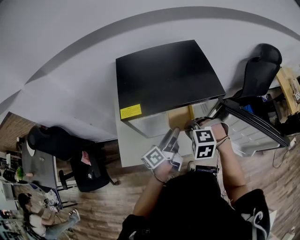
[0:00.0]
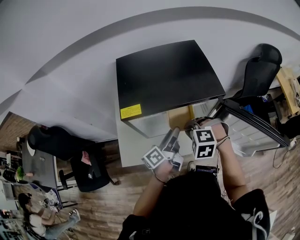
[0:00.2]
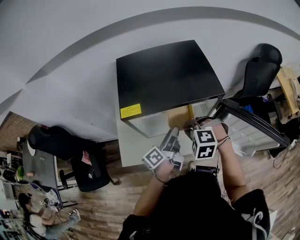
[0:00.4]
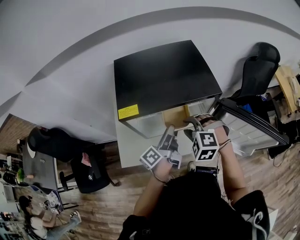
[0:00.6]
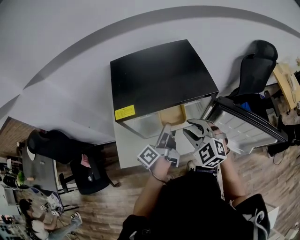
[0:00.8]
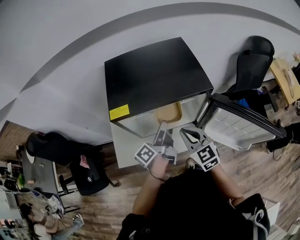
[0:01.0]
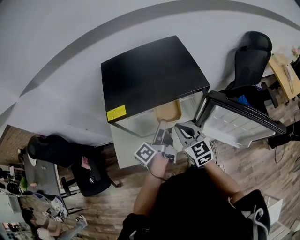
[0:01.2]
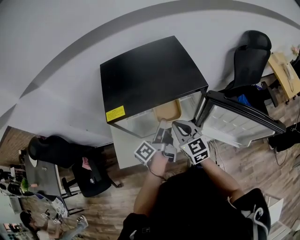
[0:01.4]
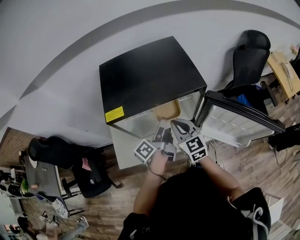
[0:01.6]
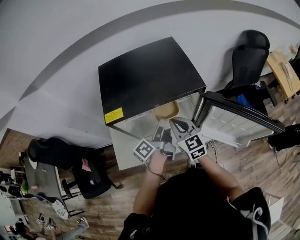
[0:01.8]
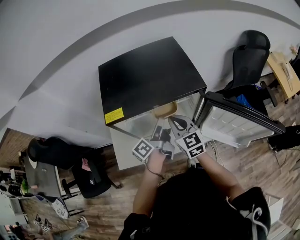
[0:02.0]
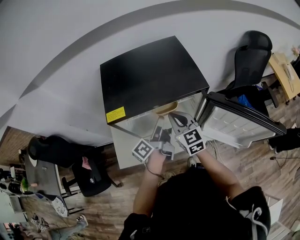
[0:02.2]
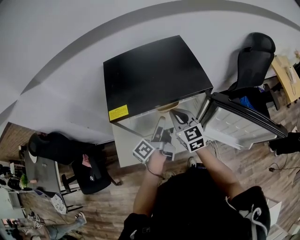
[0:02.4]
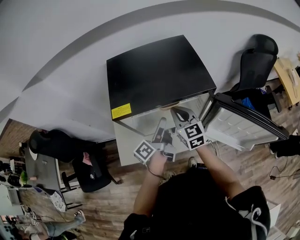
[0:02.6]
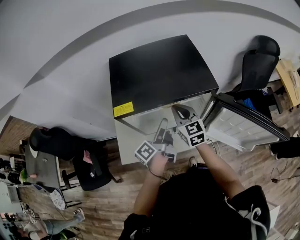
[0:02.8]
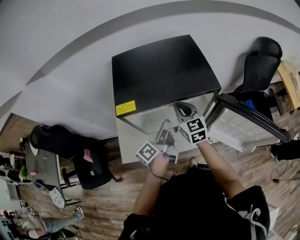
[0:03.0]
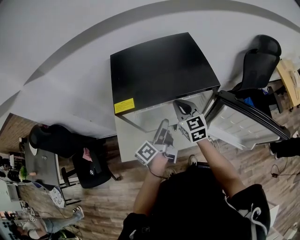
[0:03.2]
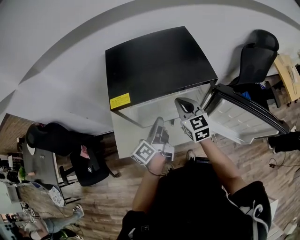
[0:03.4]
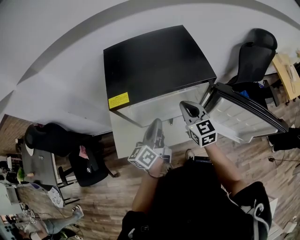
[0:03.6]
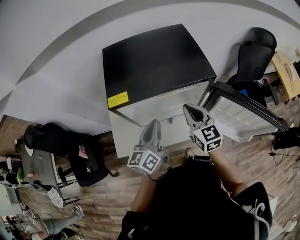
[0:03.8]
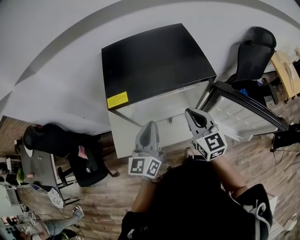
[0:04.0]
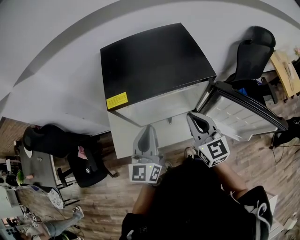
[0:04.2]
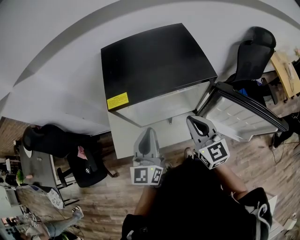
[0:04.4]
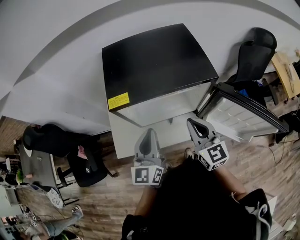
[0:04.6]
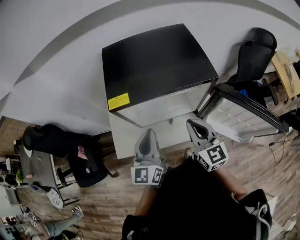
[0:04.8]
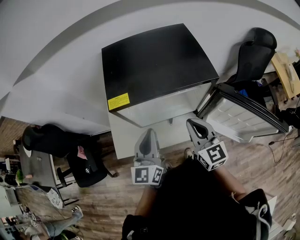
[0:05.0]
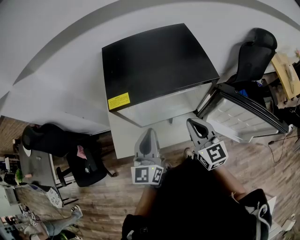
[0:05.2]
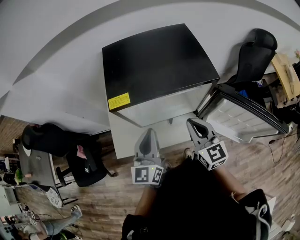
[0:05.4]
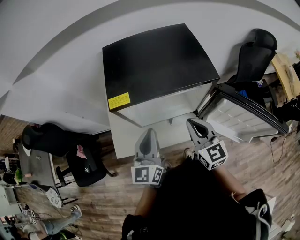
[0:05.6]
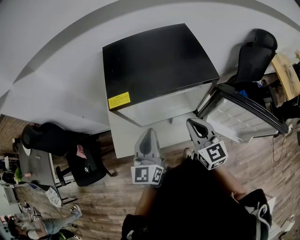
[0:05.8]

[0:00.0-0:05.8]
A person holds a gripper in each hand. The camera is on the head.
0:00.0 to 0:01.4: The right gripper tips its fingers upward by roughly 50 degrees, and opens, then closes again.
0:01.4 to 0:02.8: The right gripper travels forward by some 10 cm.
0:02.8 to 0:04.4: The left gripper heads backward and upward, covering some 10 cm, rolls clockwise, seen from behind, by about 70 degrees, and closes. The right gripper shifts about 10 cm backward.
0:04.4 to 0:05.8: The grippers make only small movements.

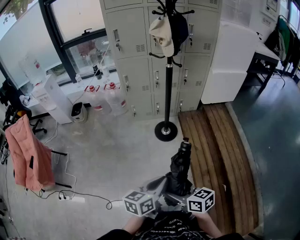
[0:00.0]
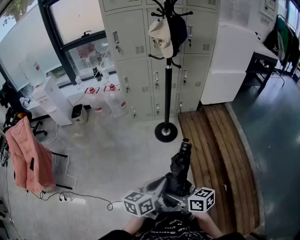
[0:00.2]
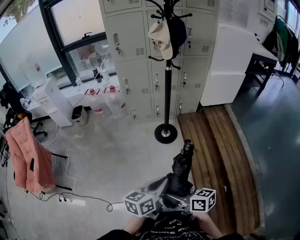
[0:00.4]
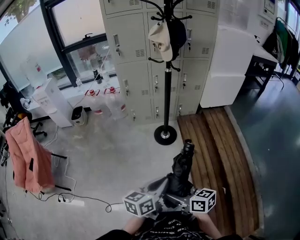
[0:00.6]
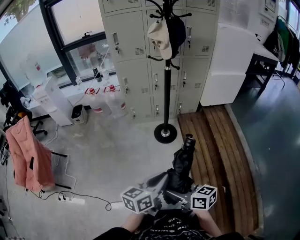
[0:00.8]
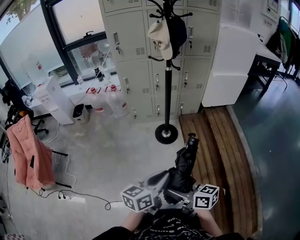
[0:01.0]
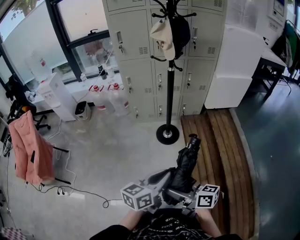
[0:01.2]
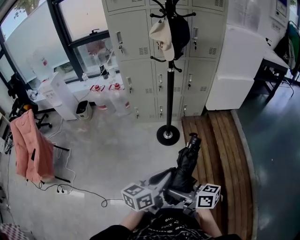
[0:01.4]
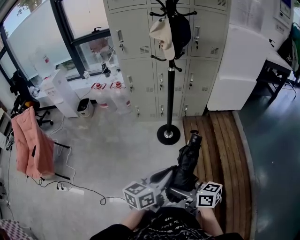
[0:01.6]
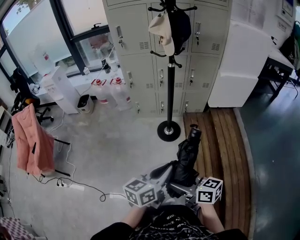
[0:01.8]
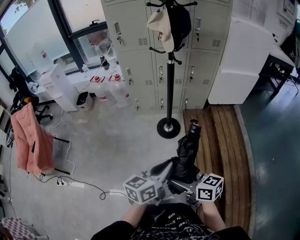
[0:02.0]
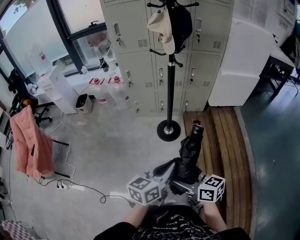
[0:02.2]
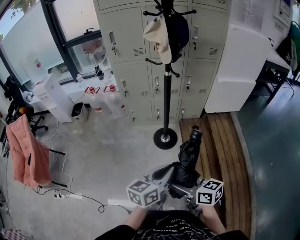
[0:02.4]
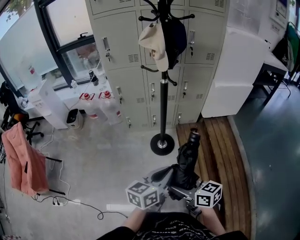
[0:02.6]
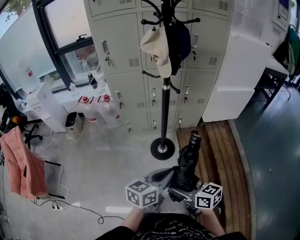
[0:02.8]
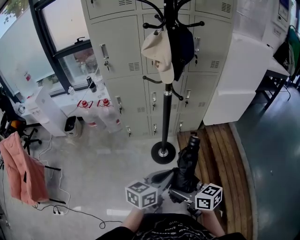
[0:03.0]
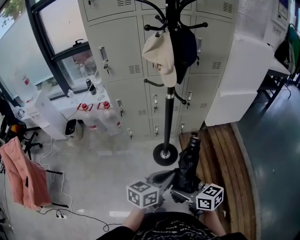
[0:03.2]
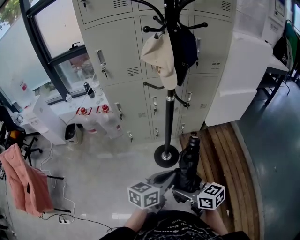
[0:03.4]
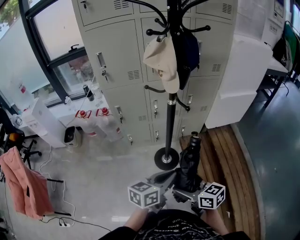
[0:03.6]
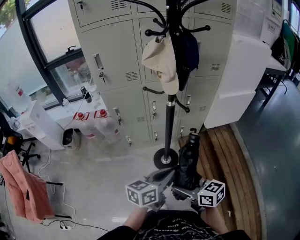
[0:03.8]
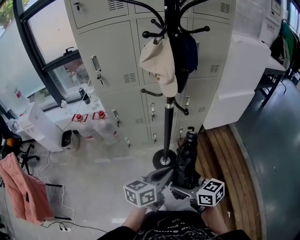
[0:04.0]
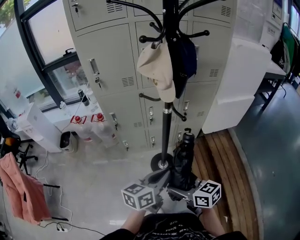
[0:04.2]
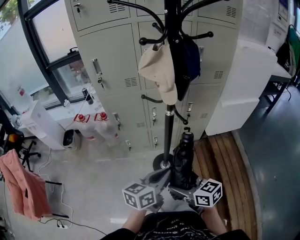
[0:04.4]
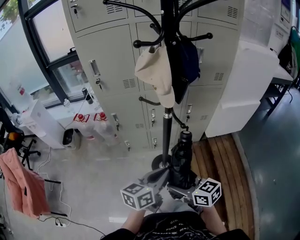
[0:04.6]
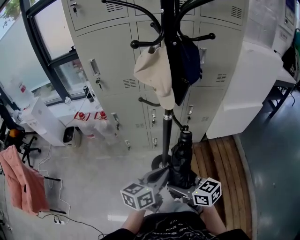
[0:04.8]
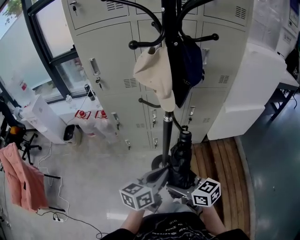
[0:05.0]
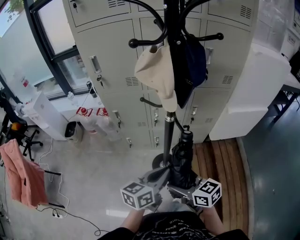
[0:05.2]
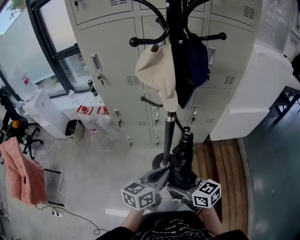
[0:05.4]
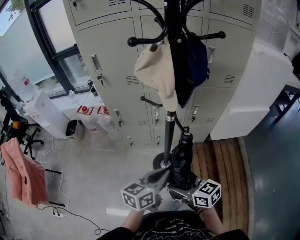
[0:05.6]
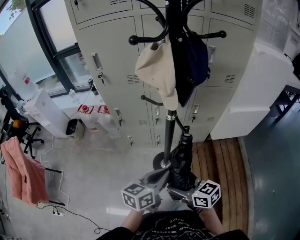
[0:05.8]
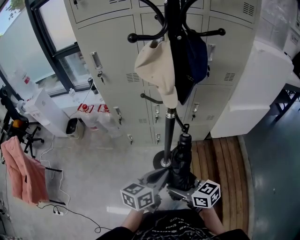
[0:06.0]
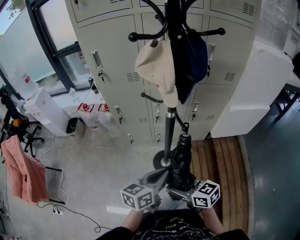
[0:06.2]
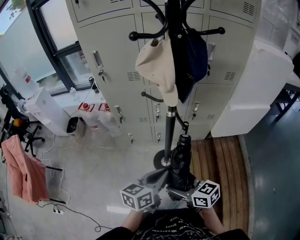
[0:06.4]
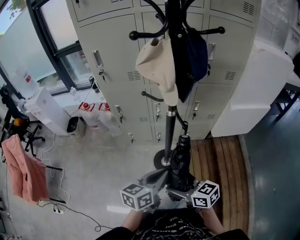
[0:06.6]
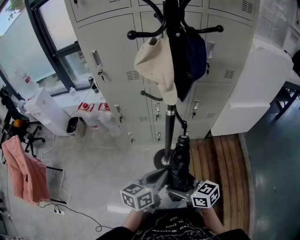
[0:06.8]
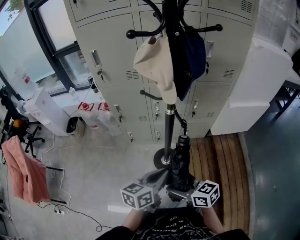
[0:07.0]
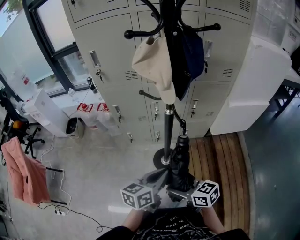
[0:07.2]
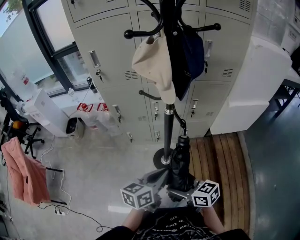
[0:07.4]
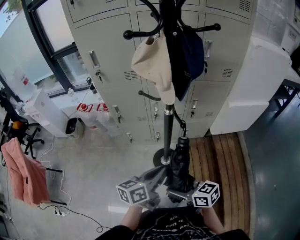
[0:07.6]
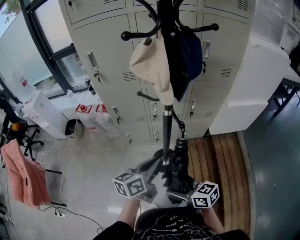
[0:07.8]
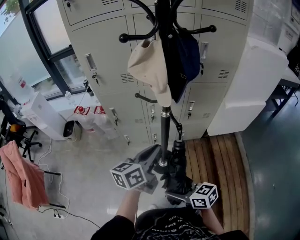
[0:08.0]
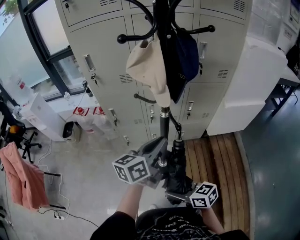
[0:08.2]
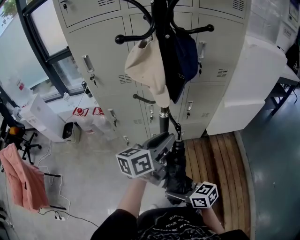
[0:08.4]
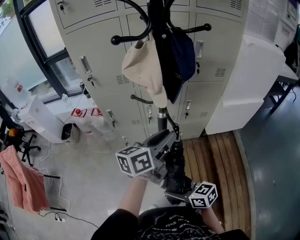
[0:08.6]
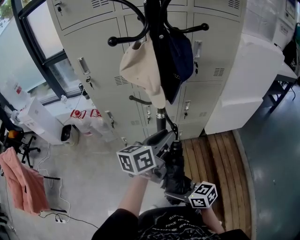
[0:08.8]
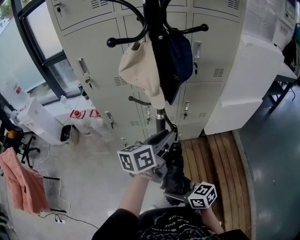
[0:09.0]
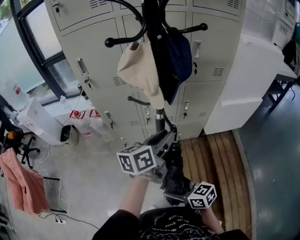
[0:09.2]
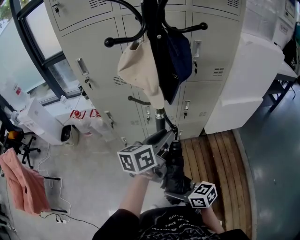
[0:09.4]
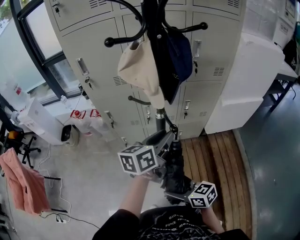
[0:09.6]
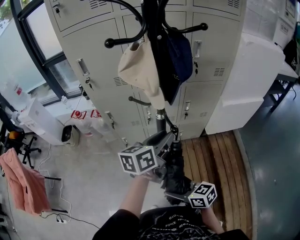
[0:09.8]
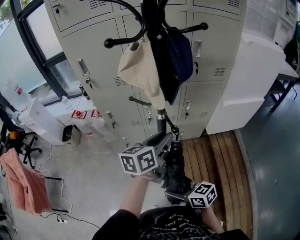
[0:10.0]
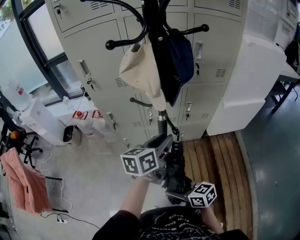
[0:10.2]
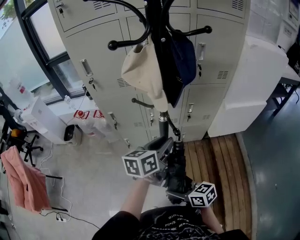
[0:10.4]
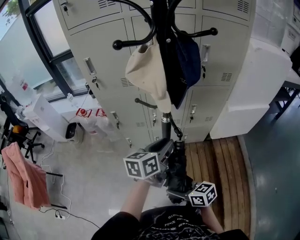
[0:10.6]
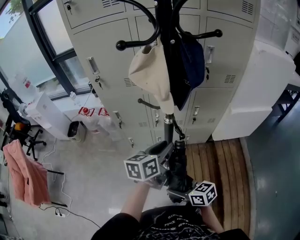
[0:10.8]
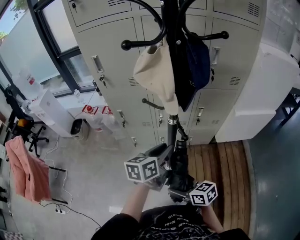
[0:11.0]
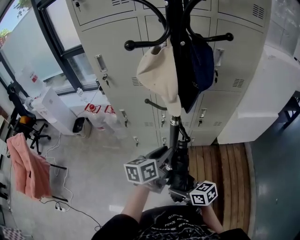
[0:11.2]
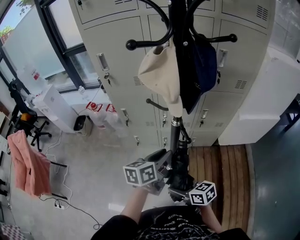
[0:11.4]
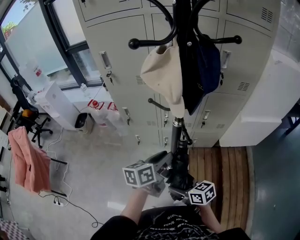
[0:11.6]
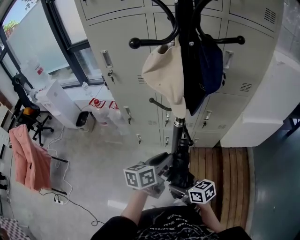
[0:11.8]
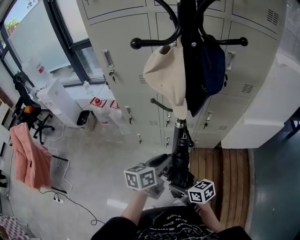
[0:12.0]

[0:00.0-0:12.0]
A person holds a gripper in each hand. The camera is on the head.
0:00.0 to 0:01.6: The two grippers go about 10 cm to the right.
0:01.6 to 0:03.0: Both grippers travel together forward, about 20 cm.
0:03.0 to 0:04.4: The grippers both shift forward by some 15 cm.
0:04.4 to 0:06.0: The right gripper changes place by some 5 cm.
0:06.0 to 0:07.6: The grippers stay close to where they were, moving slightly.
0:07.6 to 0:09.0: The left gripper goes about 15 cm forward, upward and to the right, and opens.
0:09.0 to 0:10.4: The grippers make only small movements.
0:10.4 to 0:12.0: The right gripper goes approximately 5 cm forward; the left gripper moves downward, approximately 5 cm.

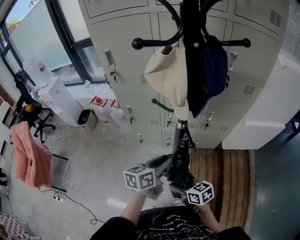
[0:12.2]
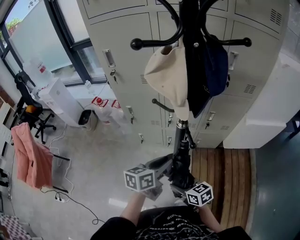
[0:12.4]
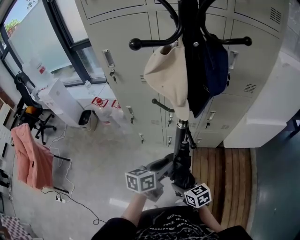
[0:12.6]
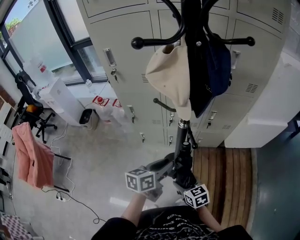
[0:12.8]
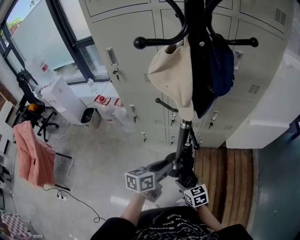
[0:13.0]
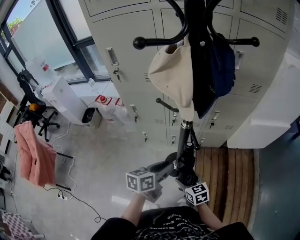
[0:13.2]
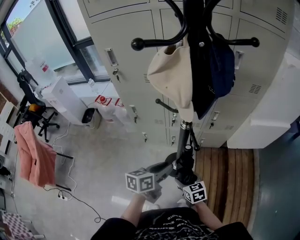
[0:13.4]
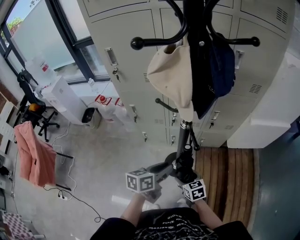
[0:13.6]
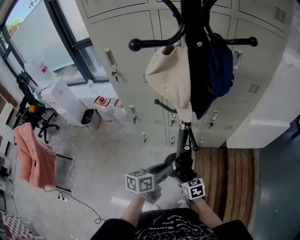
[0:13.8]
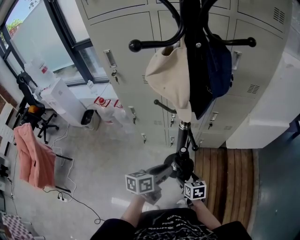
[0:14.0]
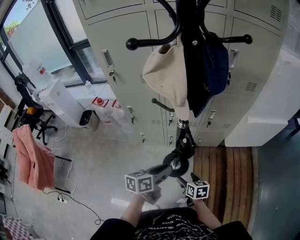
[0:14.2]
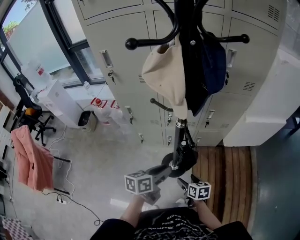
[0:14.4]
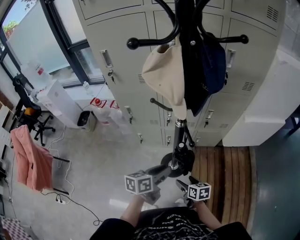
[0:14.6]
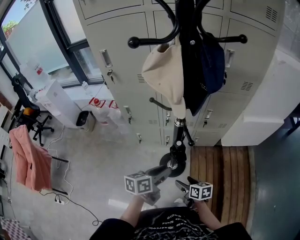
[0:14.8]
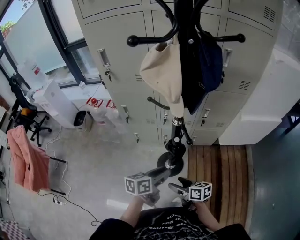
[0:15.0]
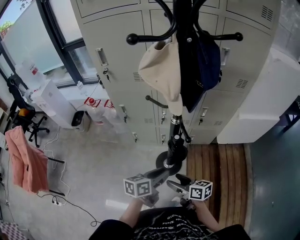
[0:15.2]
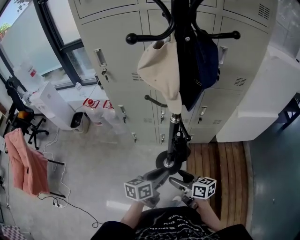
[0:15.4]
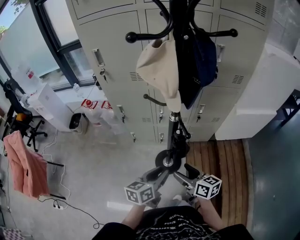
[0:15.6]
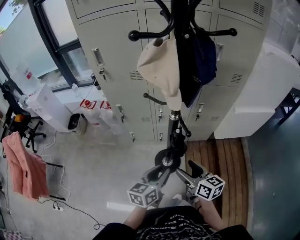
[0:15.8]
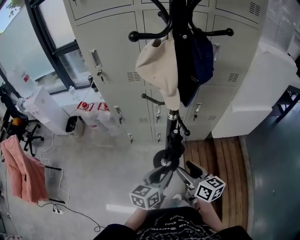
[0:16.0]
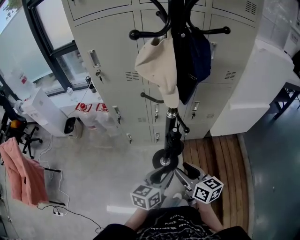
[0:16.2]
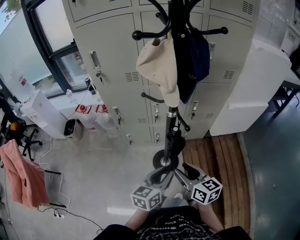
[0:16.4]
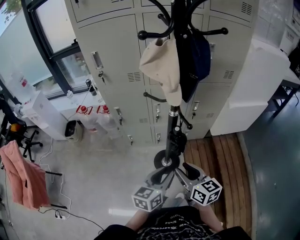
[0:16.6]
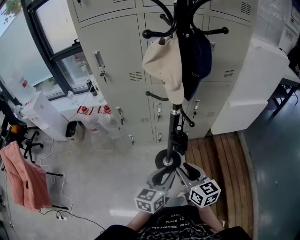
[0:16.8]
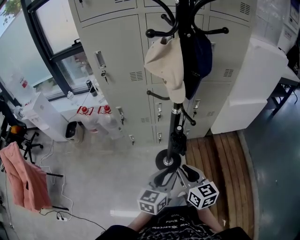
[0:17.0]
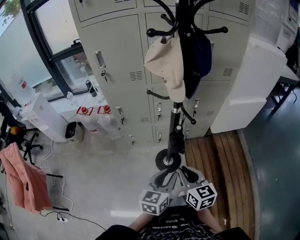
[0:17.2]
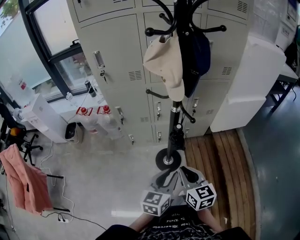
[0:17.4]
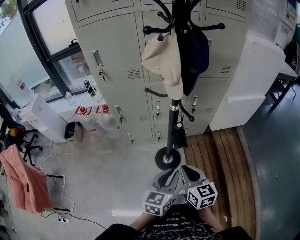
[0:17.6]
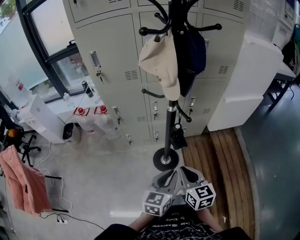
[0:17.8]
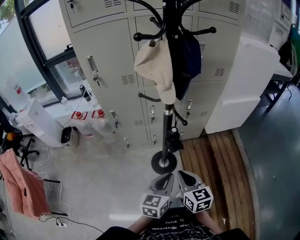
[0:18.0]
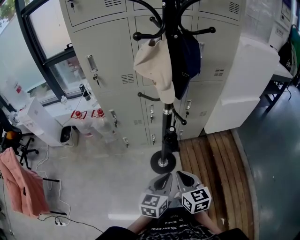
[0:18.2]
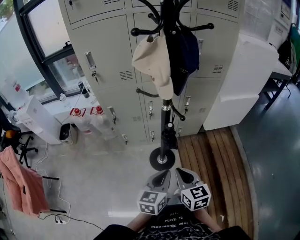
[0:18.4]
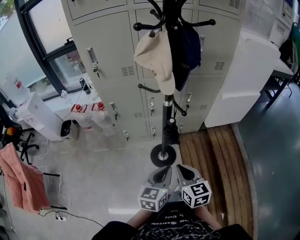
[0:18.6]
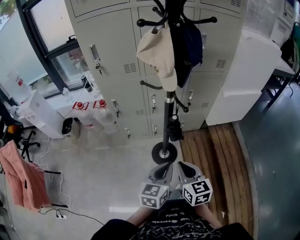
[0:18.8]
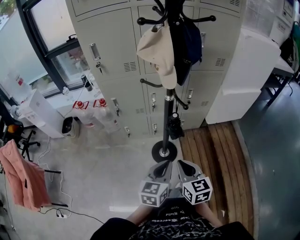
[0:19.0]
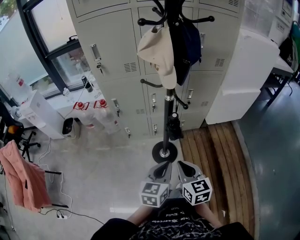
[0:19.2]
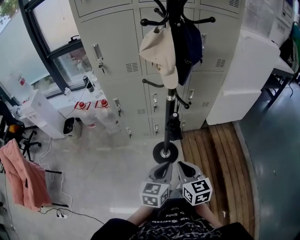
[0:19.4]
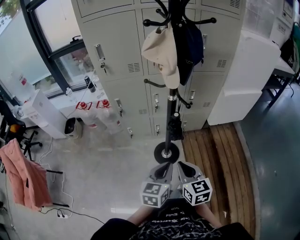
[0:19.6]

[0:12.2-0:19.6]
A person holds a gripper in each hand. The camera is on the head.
0:12.2 to 0:13.6: The left gripper moves about 5 cm. Meanwhile the right gripper travels downward and forward by approximately 10 cm, and turns by roughly 20 degrees.
0:13.6 to 0:15.2: The left gripper moves roughly 5 cm. Meanwhile the right gripper goes roughly 10 cm upward and backward, and changes its angle by approximately 40 degrees.
0:15.2 to 0:16.6: The left gripper goes about 5 cm upward and backward, and turns by roughly 20 degrees, while the right gripper moves upward, about 10 cm, turns by about 30 degrees, and closes.
0:16.6 to 0:18.2: The left gripper closes up. The right gripper closes up.
0:18.2 to 0:19.6: There are only small adjustments of the grippers.
